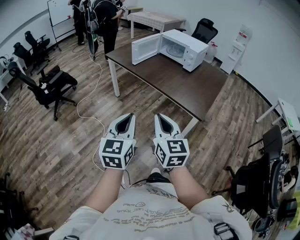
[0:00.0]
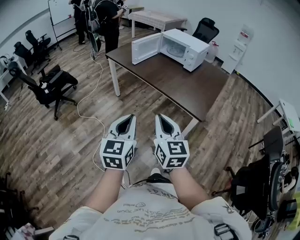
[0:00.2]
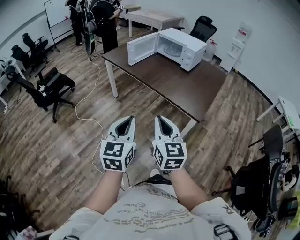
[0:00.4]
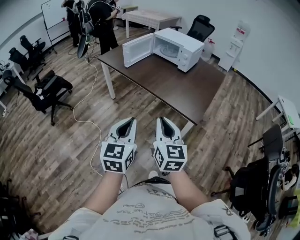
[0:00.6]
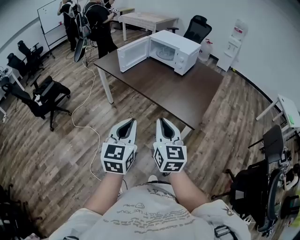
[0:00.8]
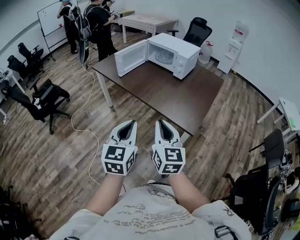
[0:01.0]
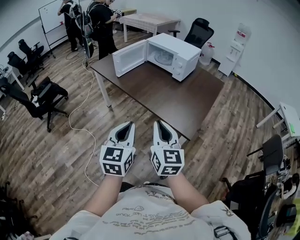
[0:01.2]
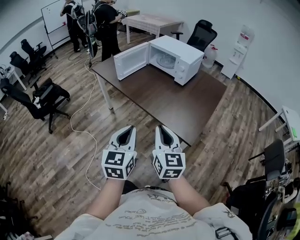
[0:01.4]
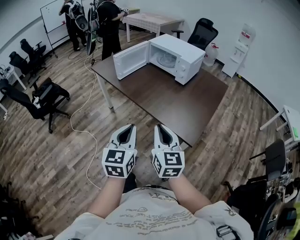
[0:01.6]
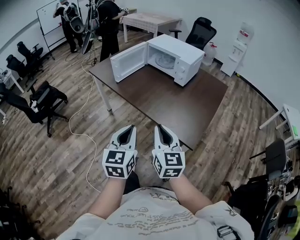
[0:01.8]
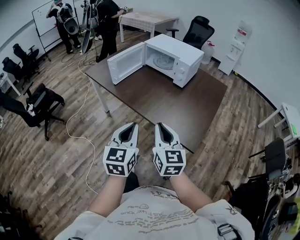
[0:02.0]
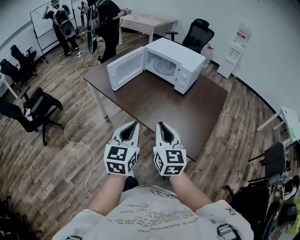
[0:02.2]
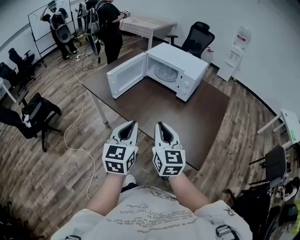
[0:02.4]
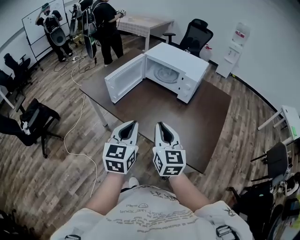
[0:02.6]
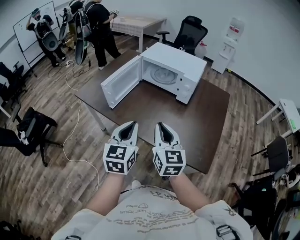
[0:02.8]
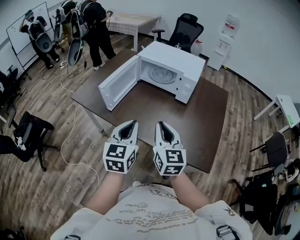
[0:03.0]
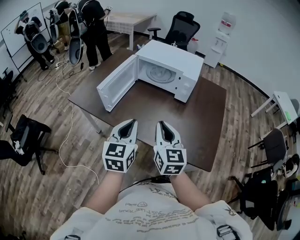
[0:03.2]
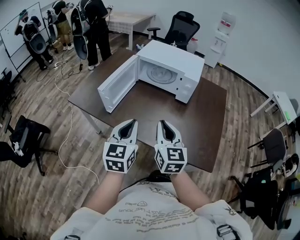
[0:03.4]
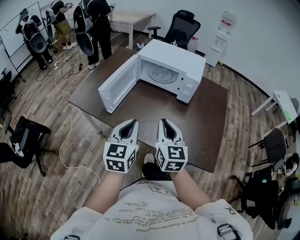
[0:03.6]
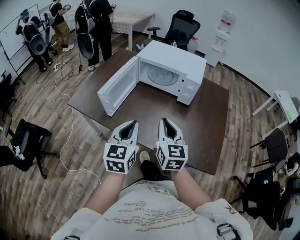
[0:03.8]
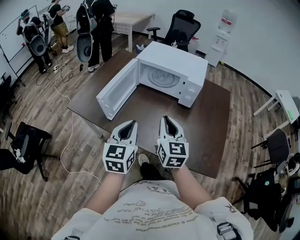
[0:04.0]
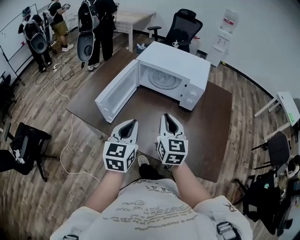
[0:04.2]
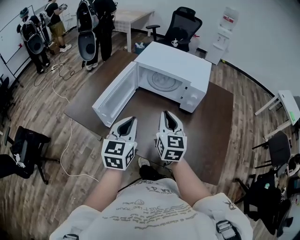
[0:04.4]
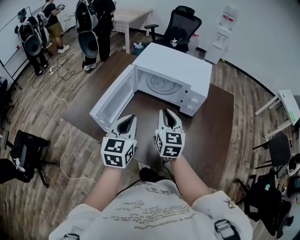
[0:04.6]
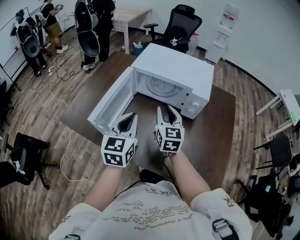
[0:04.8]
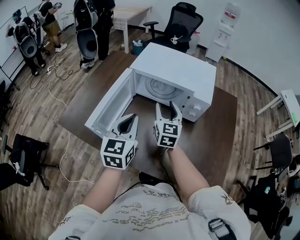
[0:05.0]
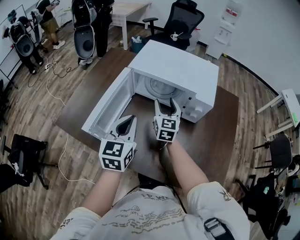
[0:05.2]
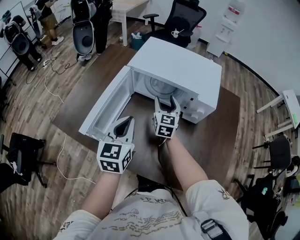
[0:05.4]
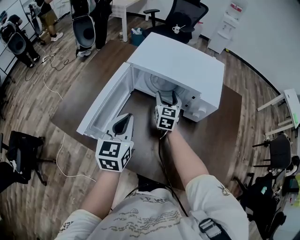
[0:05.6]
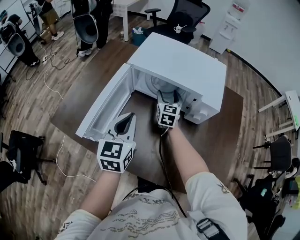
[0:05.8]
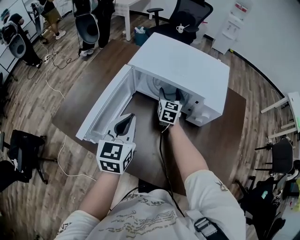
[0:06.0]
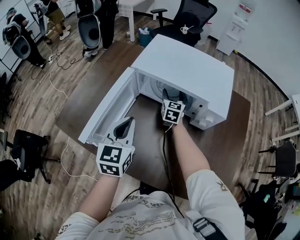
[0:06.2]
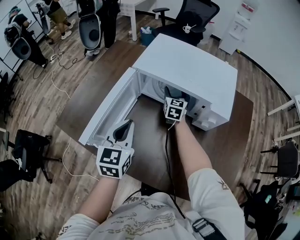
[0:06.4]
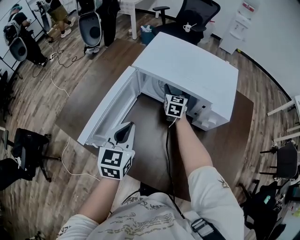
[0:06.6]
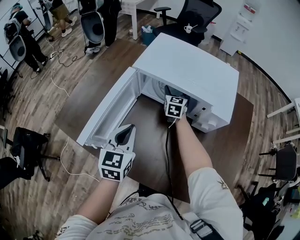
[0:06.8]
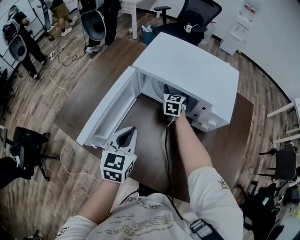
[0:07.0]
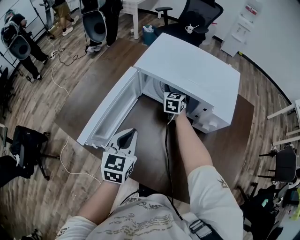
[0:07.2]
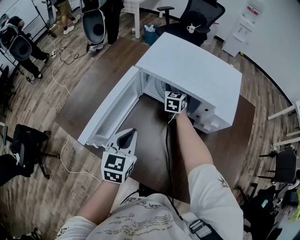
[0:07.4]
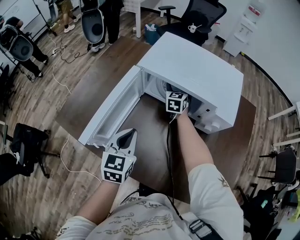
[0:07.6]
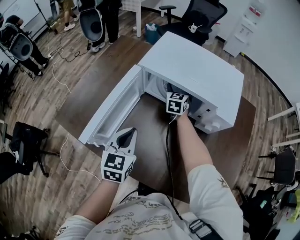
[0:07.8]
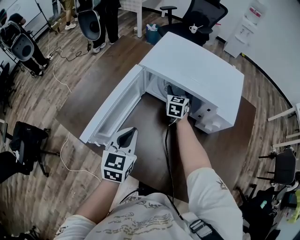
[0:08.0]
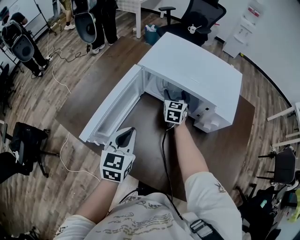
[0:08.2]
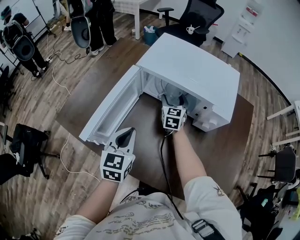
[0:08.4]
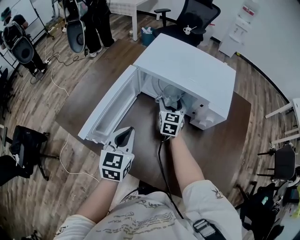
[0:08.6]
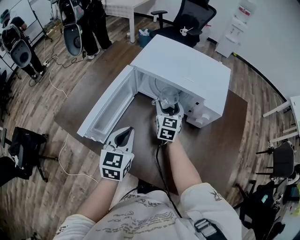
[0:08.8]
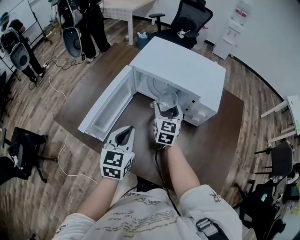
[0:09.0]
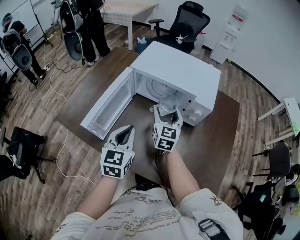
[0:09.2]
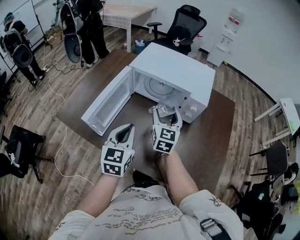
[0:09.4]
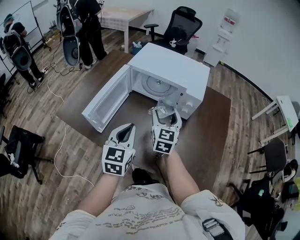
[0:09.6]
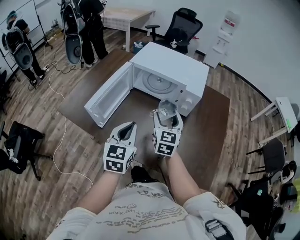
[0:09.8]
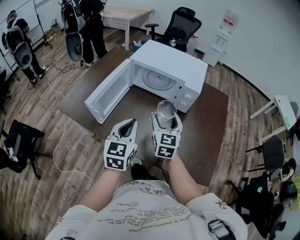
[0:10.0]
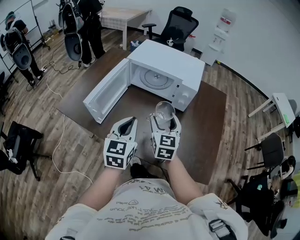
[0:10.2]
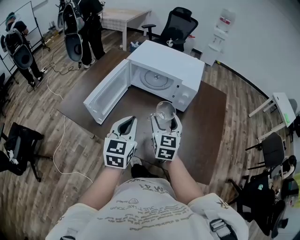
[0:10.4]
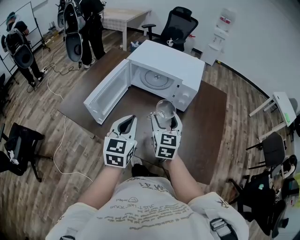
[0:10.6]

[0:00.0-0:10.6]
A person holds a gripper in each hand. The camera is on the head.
0:00.0 to 0:01.6: The grippers both shift forward and to the right by some 20 cm.
0:01.6 to 0:03.0: The grippers both shift forward by some 30 cm.
0:03.0 to 0:04.6: The two grippers go about 20 cm forward.
0:04.6 to 0:06.0: The left gripper moves forward, about 10 cm; the right gripper is displaced forward and downward by about 30 cm, and opens.
0:06.0 to 0:07.6: The right gripper heads forward, covering about 5 cm; the left gripper shifts some 5 cm downward.
0:07.6 to 0:09.0: The left gripper shifts by about 5 cm. The right gripper shifts roughly 20 cm backward and upward.
0:09.0 to 0:10.6: The left gripper moves backward, upward and to the right, some 15 cm. The right gripper moves backward and upward, about 20 cm.

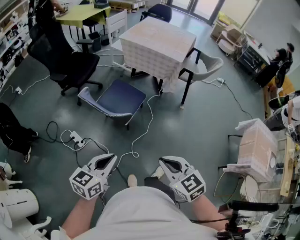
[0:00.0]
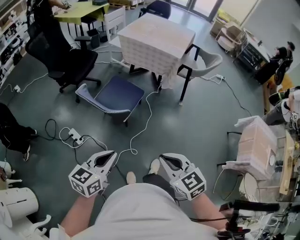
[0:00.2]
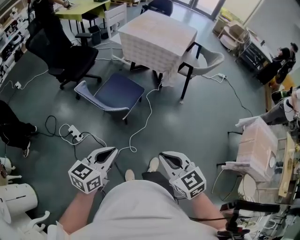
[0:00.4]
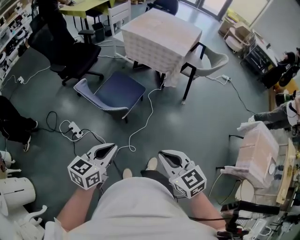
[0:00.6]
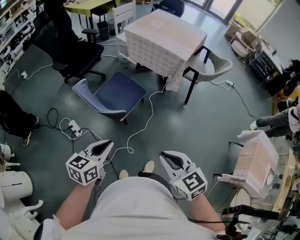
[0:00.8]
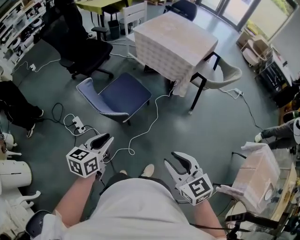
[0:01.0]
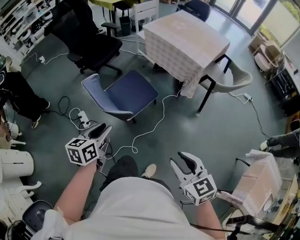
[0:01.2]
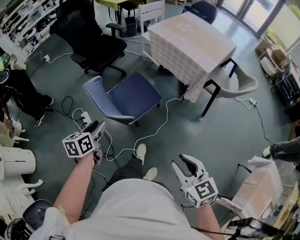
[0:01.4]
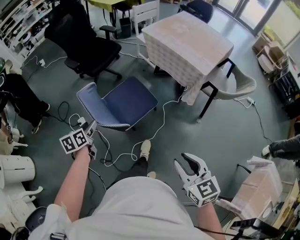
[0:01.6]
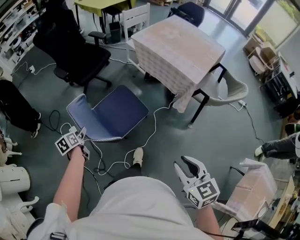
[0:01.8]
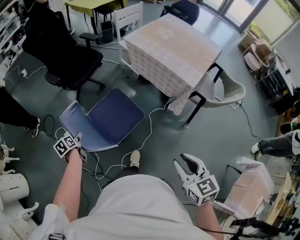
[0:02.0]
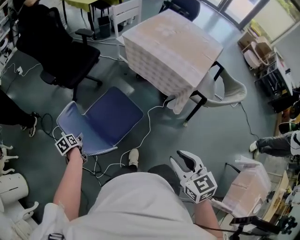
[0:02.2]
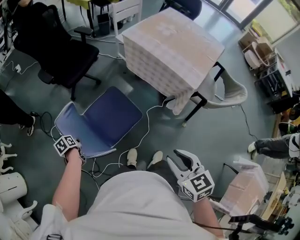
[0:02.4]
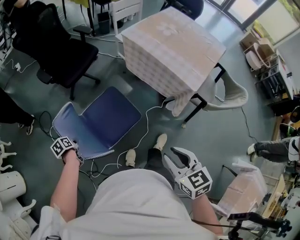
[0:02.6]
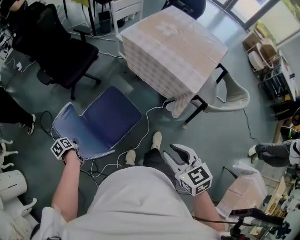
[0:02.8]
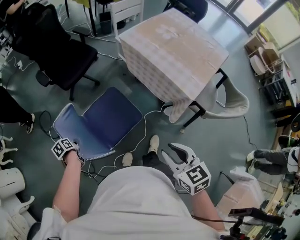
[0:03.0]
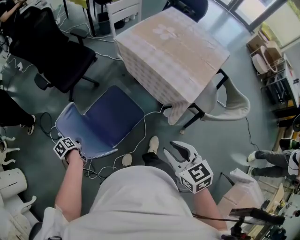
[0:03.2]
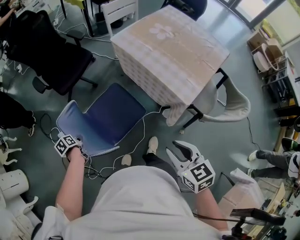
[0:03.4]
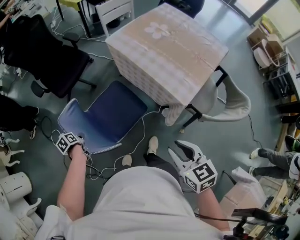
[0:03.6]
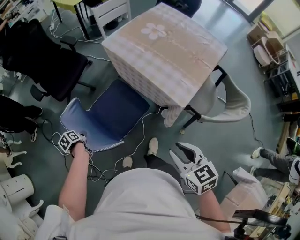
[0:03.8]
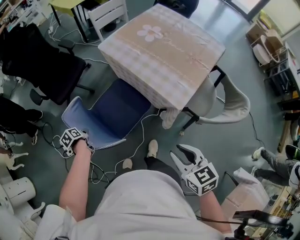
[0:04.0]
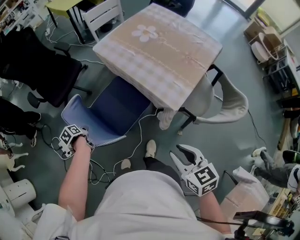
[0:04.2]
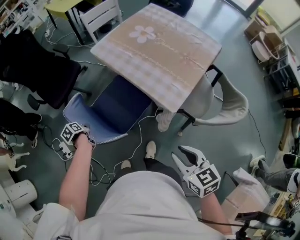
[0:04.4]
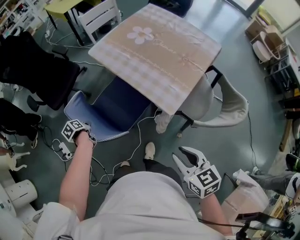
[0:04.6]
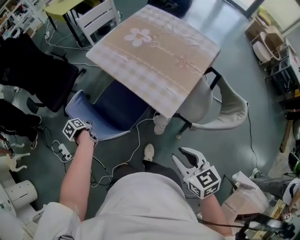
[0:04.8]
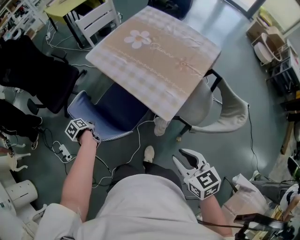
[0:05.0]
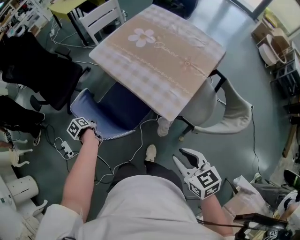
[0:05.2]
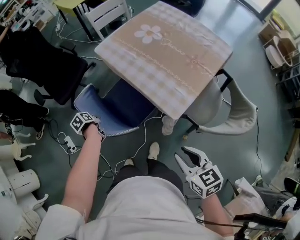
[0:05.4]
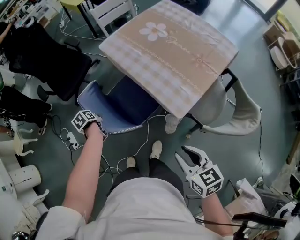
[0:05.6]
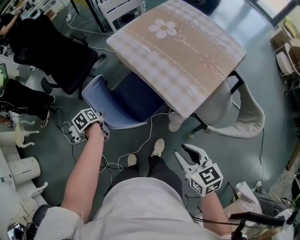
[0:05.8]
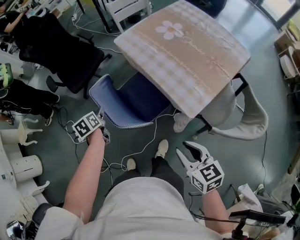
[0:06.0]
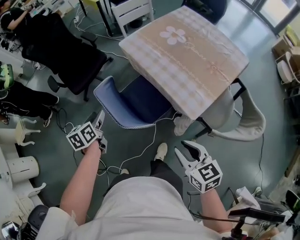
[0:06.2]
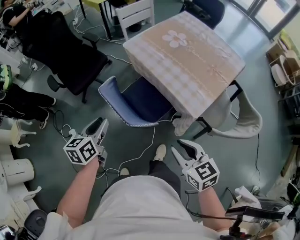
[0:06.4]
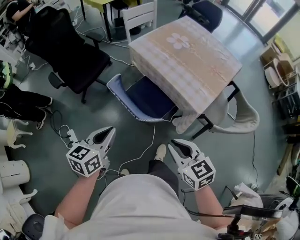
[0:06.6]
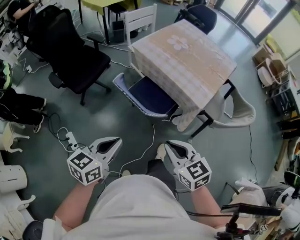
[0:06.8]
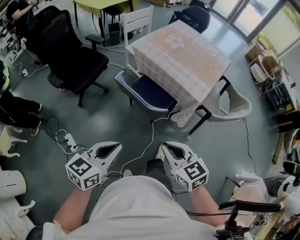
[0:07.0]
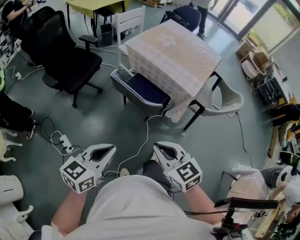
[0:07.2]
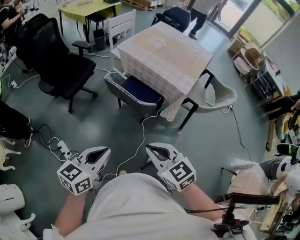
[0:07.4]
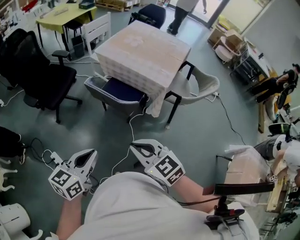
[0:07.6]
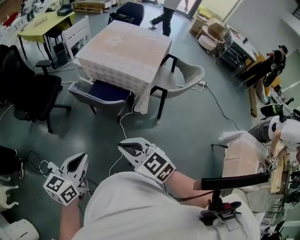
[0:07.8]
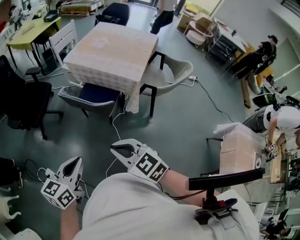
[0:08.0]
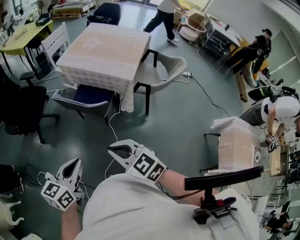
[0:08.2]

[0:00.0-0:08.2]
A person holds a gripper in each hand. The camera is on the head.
0:00.0 to 0:01.6: The left gripper changes place by some 30 cm, changes its angle by some 50 degrees, and opens its fingers. The right gripper shifts by about 30 cm, and opens up.
0:01.6 to 0:03.2: The left gripper shifts approximately 25 cm forward and downward, rotates about 40 degrees, and closes, while the right gripper moves forward and to the right, some 35 cm.
0:03.2 to 0:05.0: The right gripper shifts about 20 cm to the right. Meanwhile the left gripper goes some 35 cm to the right and forward.
0:05.0 to 0:06.6: The right gripper goes approximately 20 cm to the left; the left gripper goes about 30 cm upward and backward, tilts its fingers roughly 40 degrees upward, and opens and closes again.
0:06.6 to 0:08.2: The left gripper moves backward, some 25 cm, and swivels some 20 degrees. The right gripper travels backward and to the left by some 25 cm.
